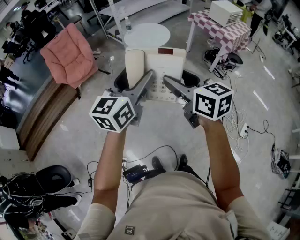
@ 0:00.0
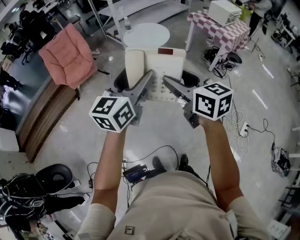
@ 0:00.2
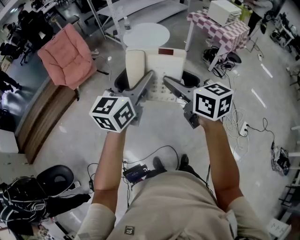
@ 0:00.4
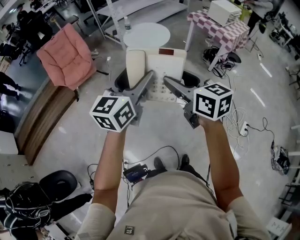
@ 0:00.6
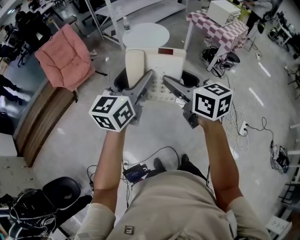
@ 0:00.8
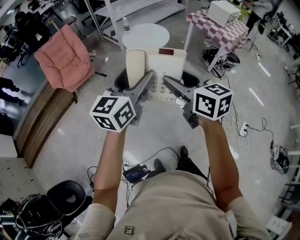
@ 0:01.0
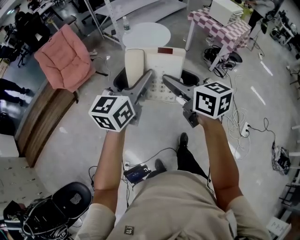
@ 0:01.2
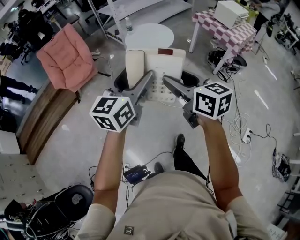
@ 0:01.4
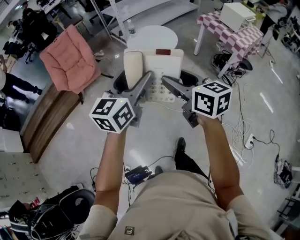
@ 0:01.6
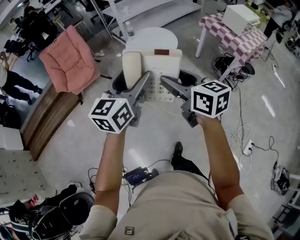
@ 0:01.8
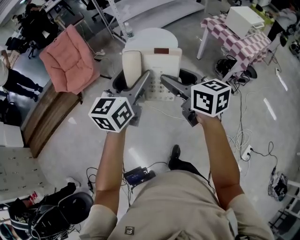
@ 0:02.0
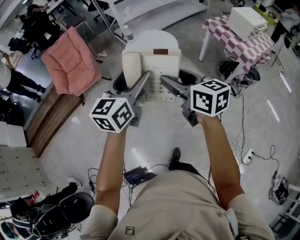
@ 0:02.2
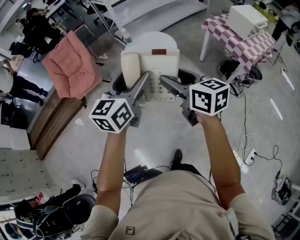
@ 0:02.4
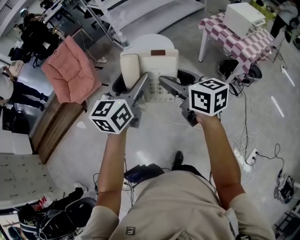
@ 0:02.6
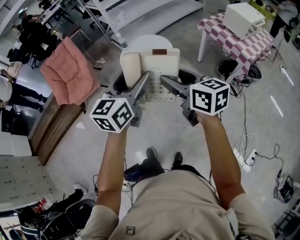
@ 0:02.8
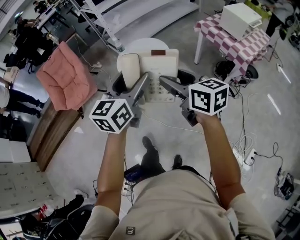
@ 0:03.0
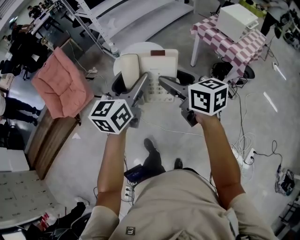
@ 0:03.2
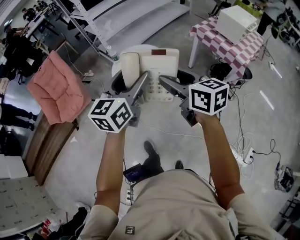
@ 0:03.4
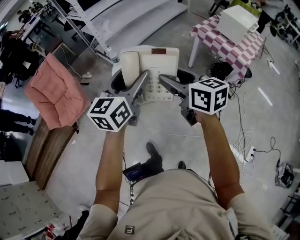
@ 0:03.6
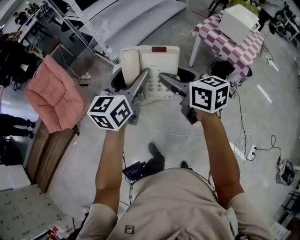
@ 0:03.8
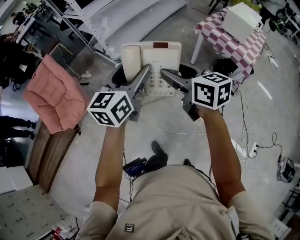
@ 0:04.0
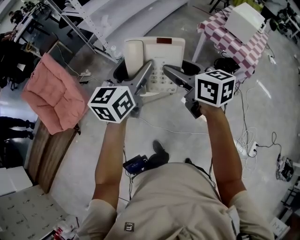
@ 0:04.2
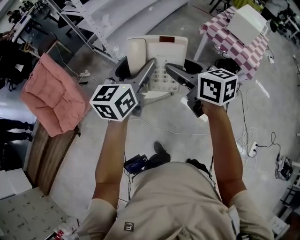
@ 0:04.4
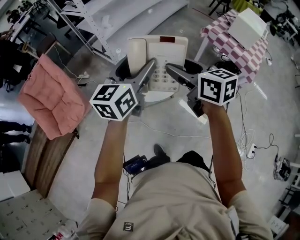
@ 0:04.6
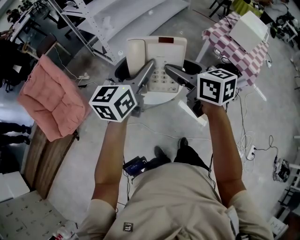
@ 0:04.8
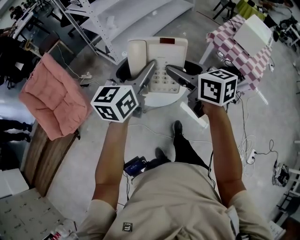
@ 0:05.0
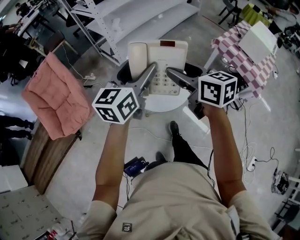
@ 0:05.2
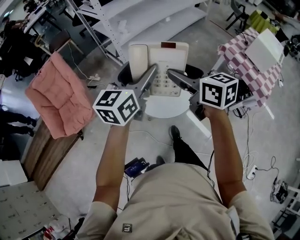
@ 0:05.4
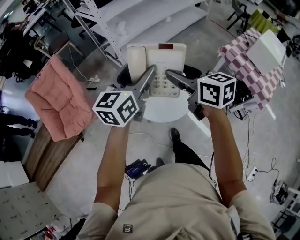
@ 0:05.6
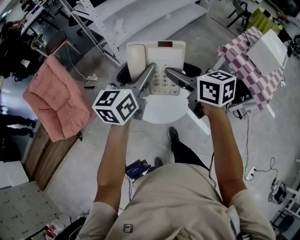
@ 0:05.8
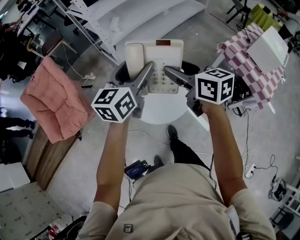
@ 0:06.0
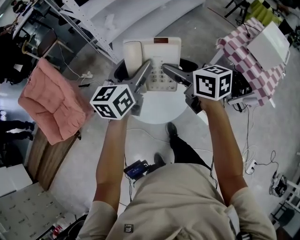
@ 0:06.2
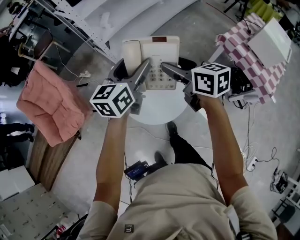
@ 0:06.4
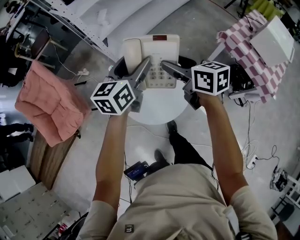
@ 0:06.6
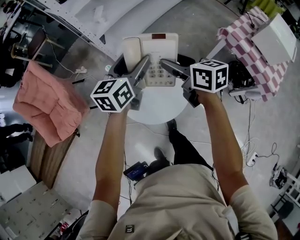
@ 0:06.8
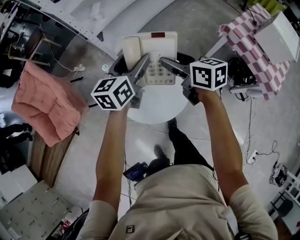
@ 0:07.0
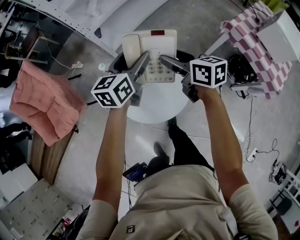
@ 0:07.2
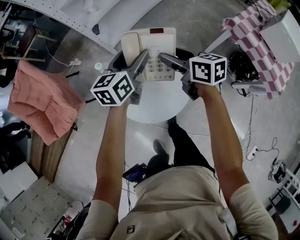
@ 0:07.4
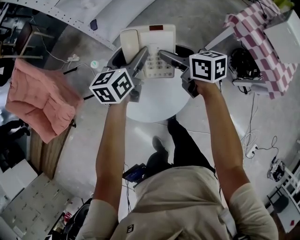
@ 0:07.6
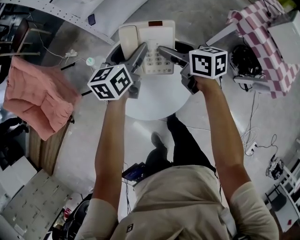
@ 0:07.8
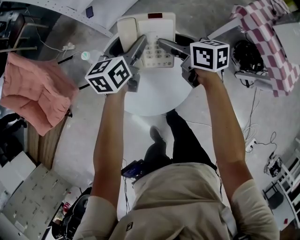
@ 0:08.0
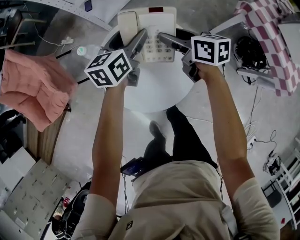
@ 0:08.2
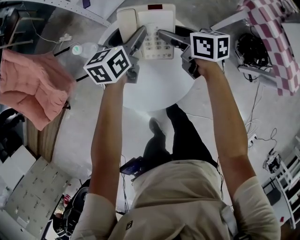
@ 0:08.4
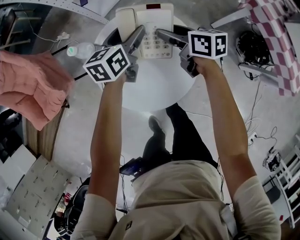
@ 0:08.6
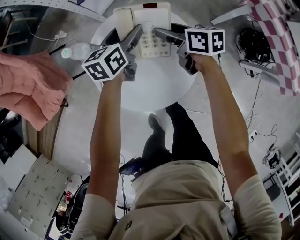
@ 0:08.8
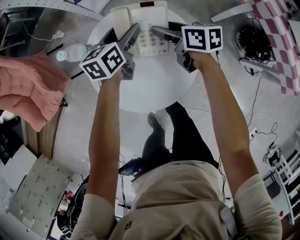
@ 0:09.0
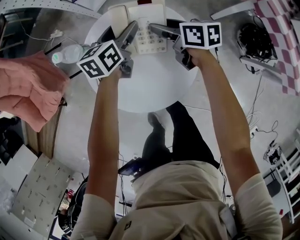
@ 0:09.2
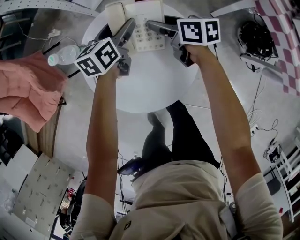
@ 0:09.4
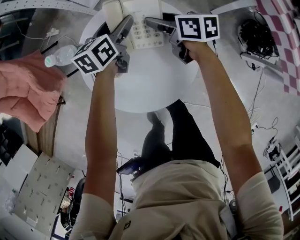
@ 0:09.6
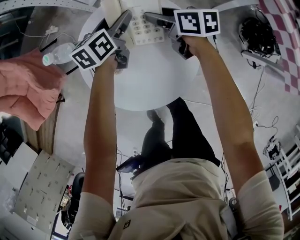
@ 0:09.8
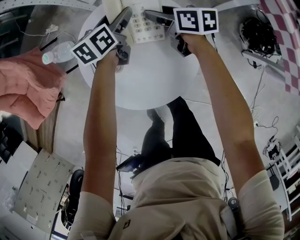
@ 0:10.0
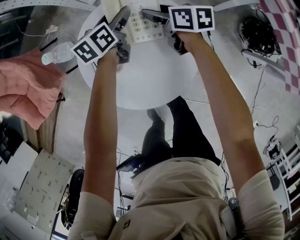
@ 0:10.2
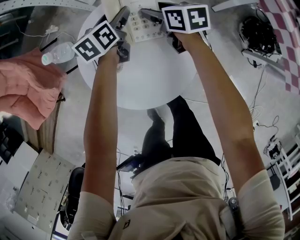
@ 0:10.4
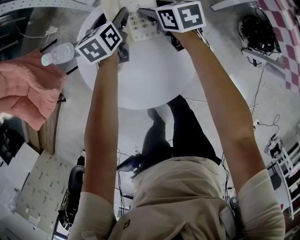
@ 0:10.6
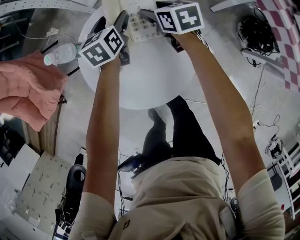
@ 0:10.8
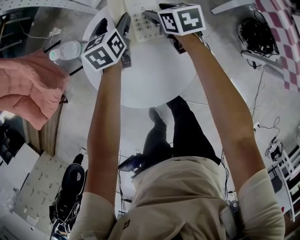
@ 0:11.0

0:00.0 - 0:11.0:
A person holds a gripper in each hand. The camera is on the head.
0:00.0 - 0:01.6: The grippers both shift forward by roughly 15 cm.
0:01.6 - 0:03.2: Both grippers move forward and to the right, about 30 cm.
0:03.2 - 0:04.8: Both grippers move forward and to the left, about 30 cm.
0:04.8 - 0:06.2: Both grippers move forward, about 20 cm.
0:06.2 - 0:07.8: Both grippers travel together downward and forward, about 25 cm.
0:07.8 - 0:09.4: The two grippers go roughly 20 cm downward.
0:09.4 - 0:11.0: The right gripper rotates roughly 20 degrees.

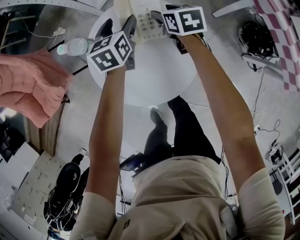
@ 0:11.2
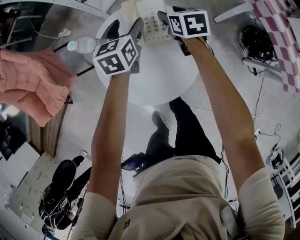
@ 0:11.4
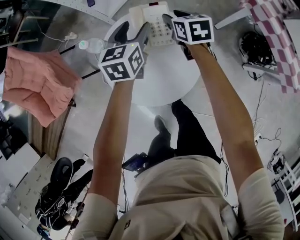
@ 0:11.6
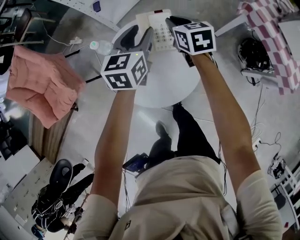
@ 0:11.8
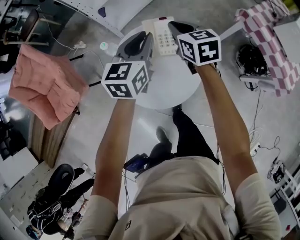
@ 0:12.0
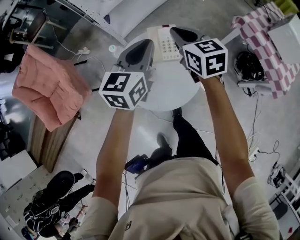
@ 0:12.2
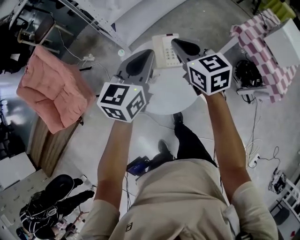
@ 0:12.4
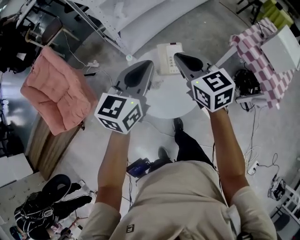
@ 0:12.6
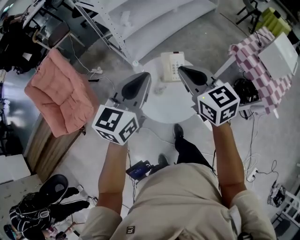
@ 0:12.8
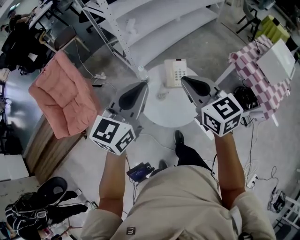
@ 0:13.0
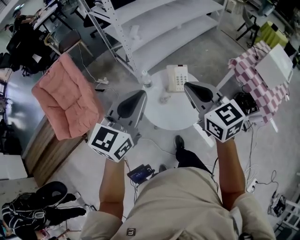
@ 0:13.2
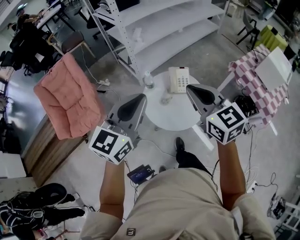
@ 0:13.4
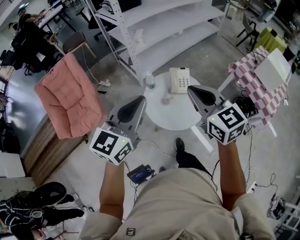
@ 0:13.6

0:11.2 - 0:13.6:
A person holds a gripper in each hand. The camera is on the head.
0:11.2 - 0:12.4: The right gripper goes approximately 35 cm upward, swivels some 30 degrees, and closes its fingers; the left gripper travels upward and backward by about 40 cm, turns by about 30 degrees, and closes its fingers.
0:12.4 - 0:13.6: The left gripper heads backward, upward and to the left, covering roughly 30 cm; the right gripper goes about 25 cm backward and upward.

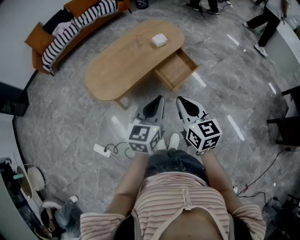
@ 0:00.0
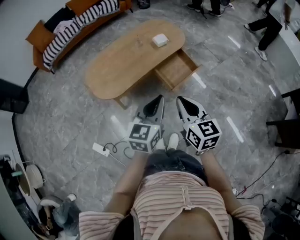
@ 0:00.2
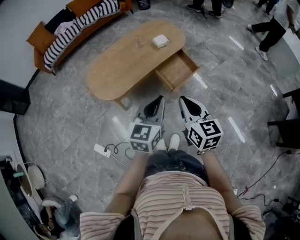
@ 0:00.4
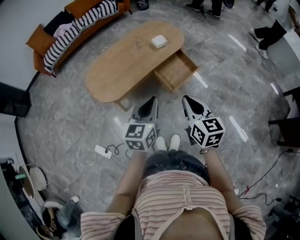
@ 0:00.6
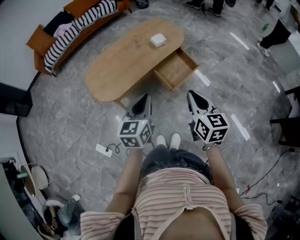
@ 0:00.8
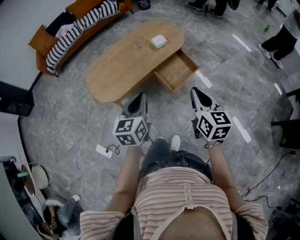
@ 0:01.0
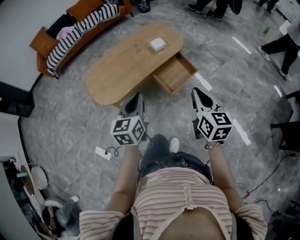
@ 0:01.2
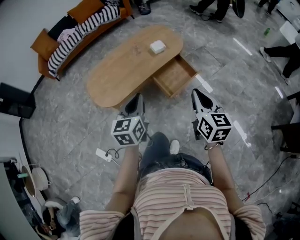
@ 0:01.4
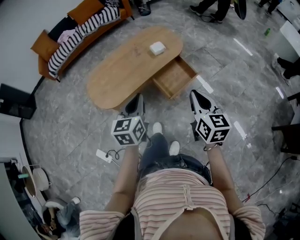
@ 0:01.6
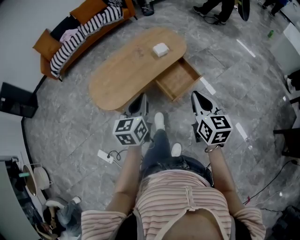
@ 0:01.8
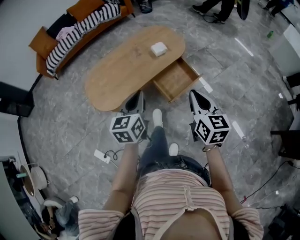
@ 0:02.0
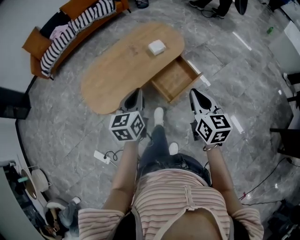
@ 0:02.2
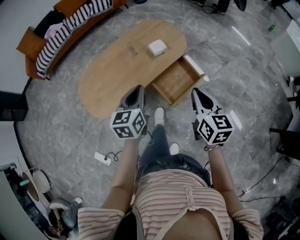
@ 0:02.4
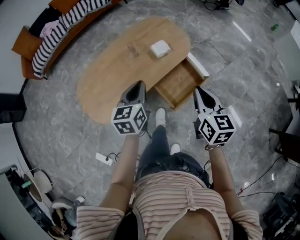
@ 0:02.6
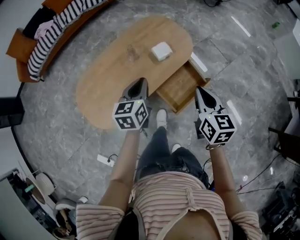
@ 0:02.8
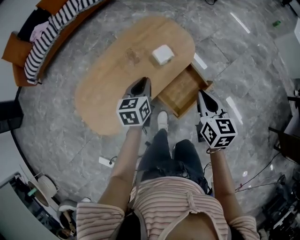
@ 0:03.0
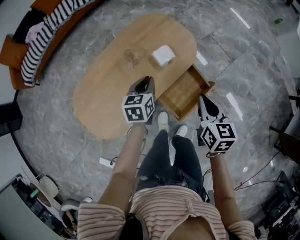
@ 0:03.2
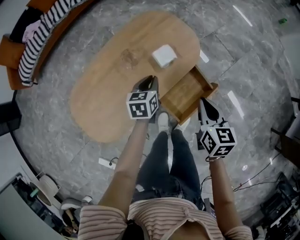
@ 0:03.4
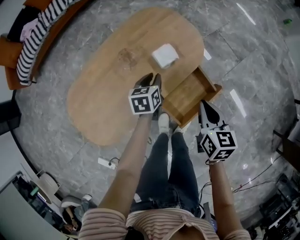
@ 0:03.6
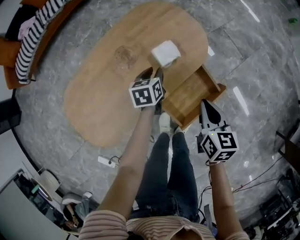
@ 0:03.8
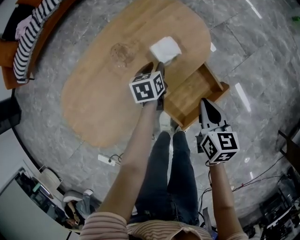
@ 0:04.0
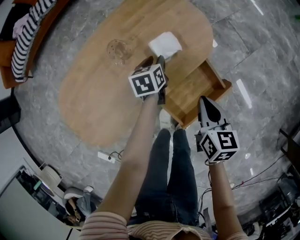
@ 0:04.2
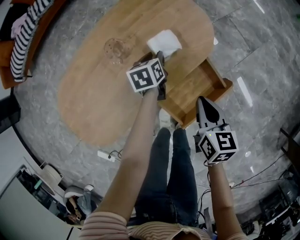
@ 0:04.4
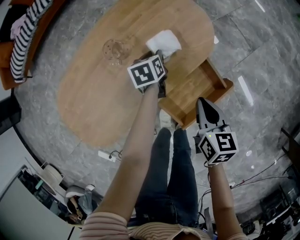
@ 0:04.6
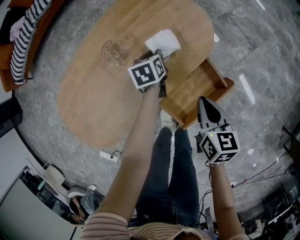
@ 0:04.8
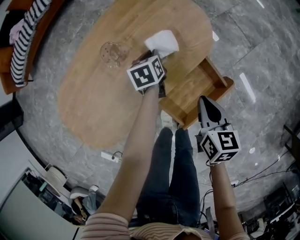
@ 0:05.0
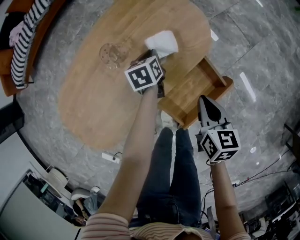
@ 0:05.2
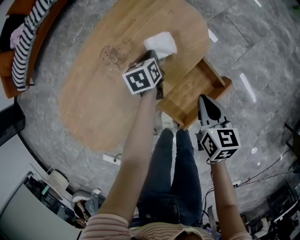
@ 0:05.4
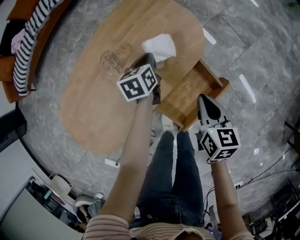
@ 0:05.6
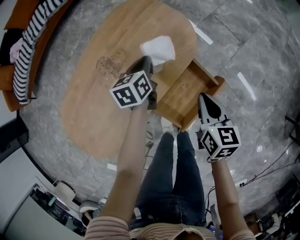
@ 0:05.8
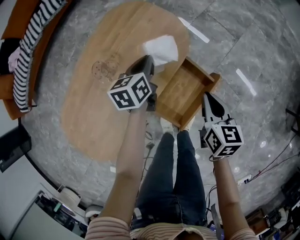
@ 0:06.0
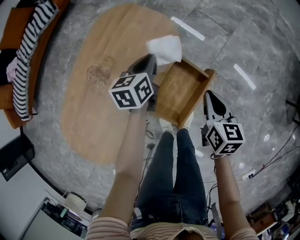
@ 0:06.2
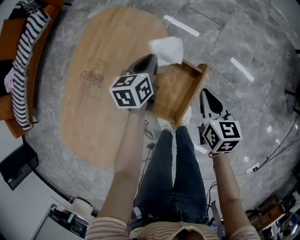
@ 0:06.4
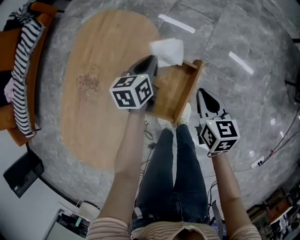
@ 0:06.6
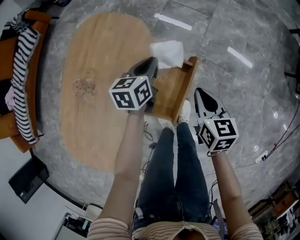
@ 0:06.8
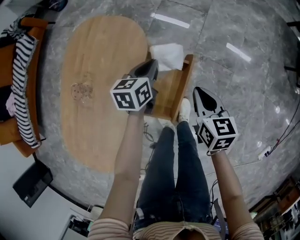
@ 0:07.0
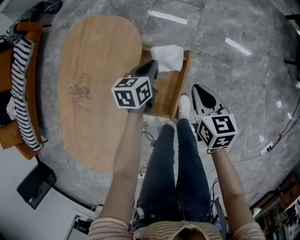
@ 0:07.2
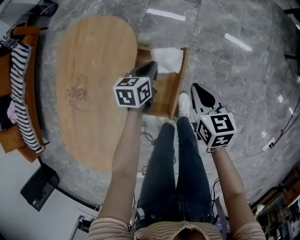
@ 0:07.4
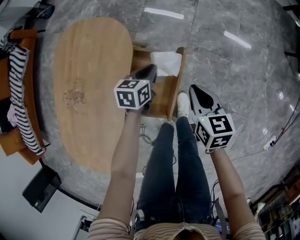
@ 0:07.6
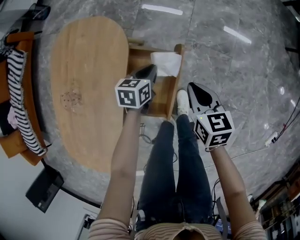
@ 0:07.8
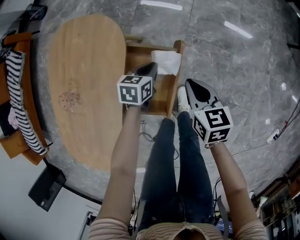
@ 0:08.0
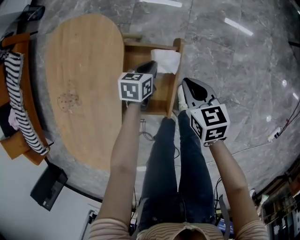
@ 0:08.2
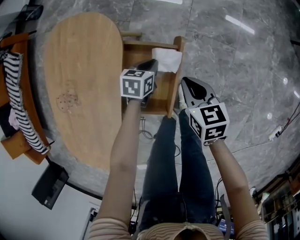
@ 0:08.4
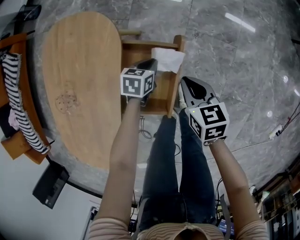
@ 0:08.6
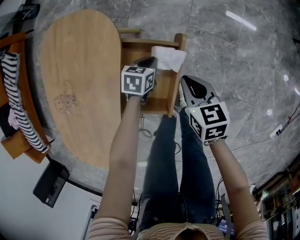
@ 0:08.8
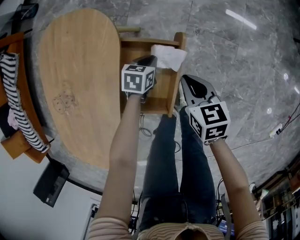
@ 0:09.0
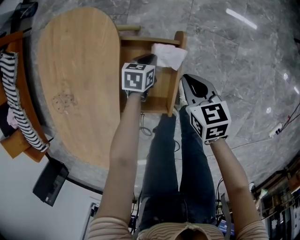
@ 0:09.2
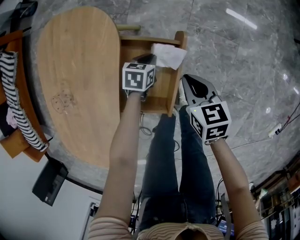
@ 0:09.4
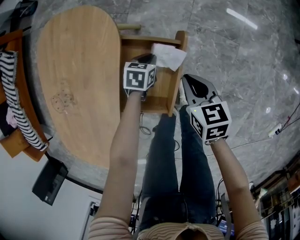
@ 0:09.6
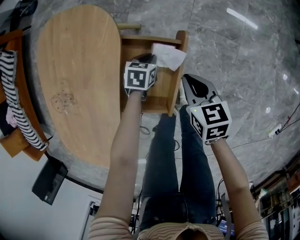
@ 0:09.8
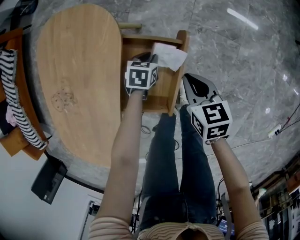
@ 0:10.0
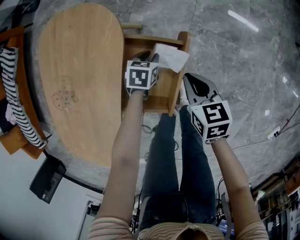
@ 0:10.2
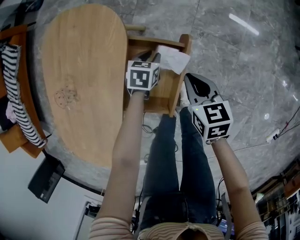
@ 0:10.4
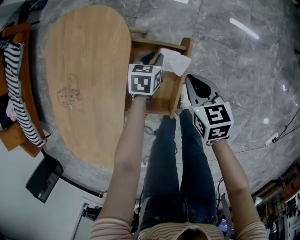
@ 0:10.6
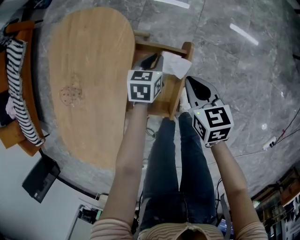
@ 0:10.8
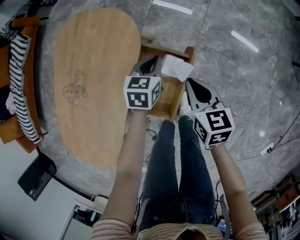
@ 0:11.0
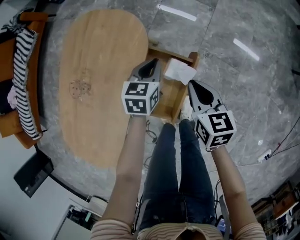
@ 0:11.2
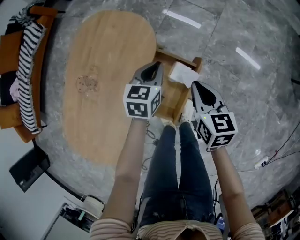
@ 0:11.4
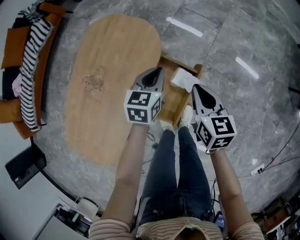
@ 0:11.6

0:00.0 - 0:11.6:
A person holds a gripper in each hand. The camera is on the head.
0:00.0 - 0:01.4: The right gripper shifts roughly 15 cm to the right and forward. Meanwhile the left gripper shifts about 5 cm forward.
0:01.4 - 0:02.8: Both grippers move forward, about 30 cm.
0:02.8 - 0:04.4: The two grippers go roughly 30 cm downward and forward. The left gripper rotates roughly 30 degrees, and opens.
0:04.4 - 0:05.8: The right gripper changes place by approximately 5 cm. Meanwhile the left gripper shifts approximately 10 cm upward, and closes its fingers.
0:05.8 - 0:07.2: The left gripper ends up approximately 25 cm from where it was, and rotates approximately 40 degrees; the right gripper changes place by approximately 15 cm.
0:07.2 - 0:08.8: The left gripper heads downward, covering approximately 15 cm, and swivels about 30 degrees. Meanwhile the right gripper heads downward, covering approximately 10 cm.
0:08.8 - 0:10.2: There are only small adjustments of the grippers.
0:10.2 - 0:11.6: The right gripper moves upward, approximately 15 cm, while the left gripper heads upward, covering some 25 cm, and swivels roughly 30 degrees.
